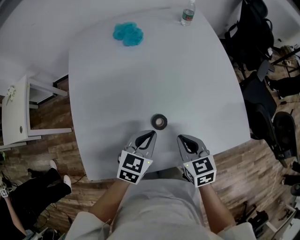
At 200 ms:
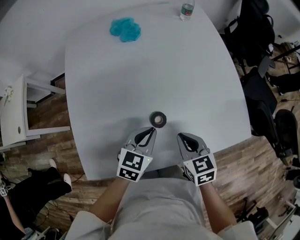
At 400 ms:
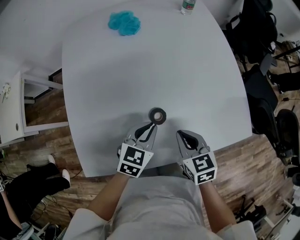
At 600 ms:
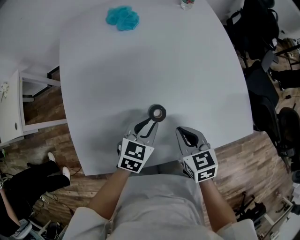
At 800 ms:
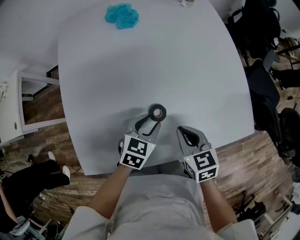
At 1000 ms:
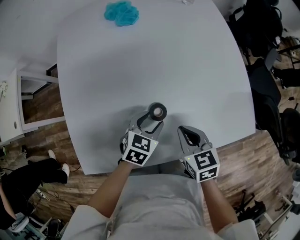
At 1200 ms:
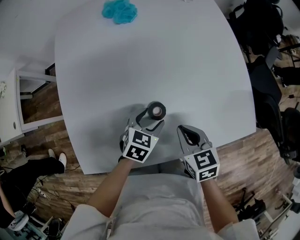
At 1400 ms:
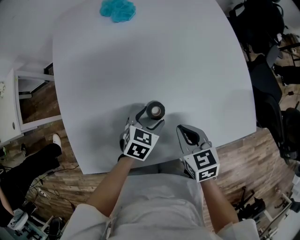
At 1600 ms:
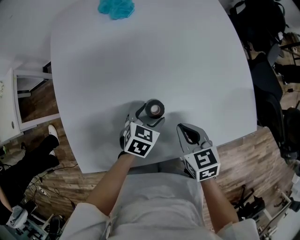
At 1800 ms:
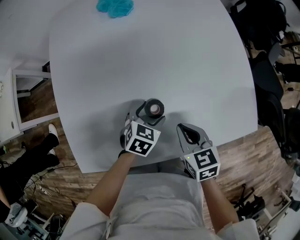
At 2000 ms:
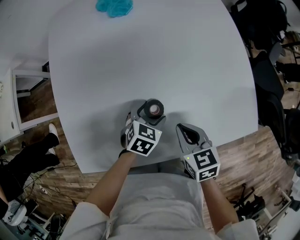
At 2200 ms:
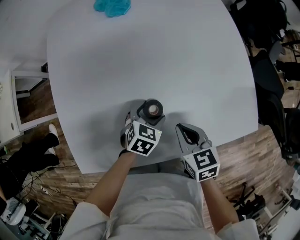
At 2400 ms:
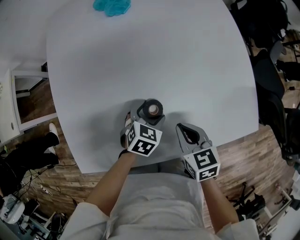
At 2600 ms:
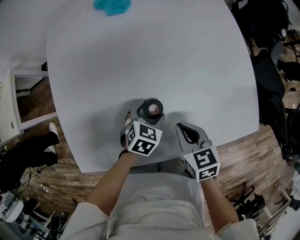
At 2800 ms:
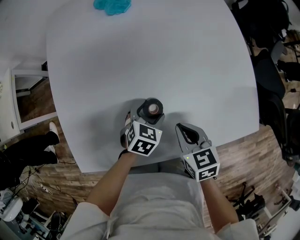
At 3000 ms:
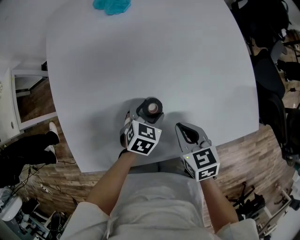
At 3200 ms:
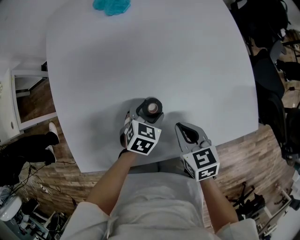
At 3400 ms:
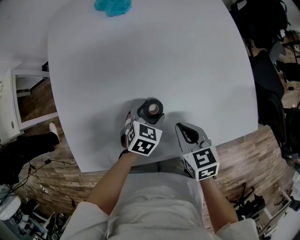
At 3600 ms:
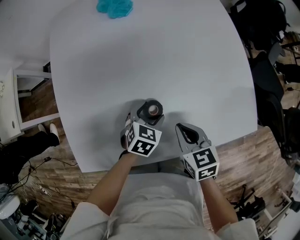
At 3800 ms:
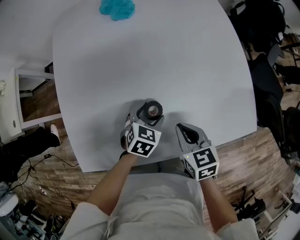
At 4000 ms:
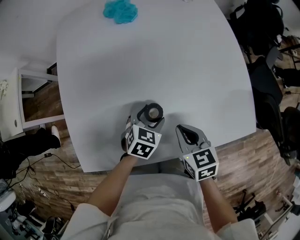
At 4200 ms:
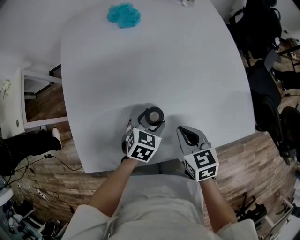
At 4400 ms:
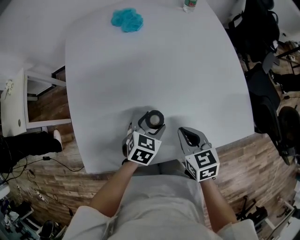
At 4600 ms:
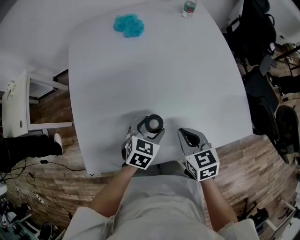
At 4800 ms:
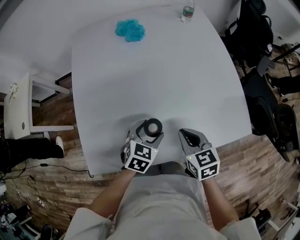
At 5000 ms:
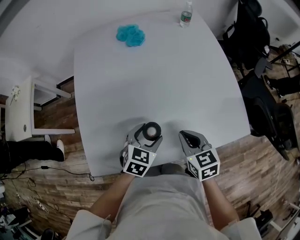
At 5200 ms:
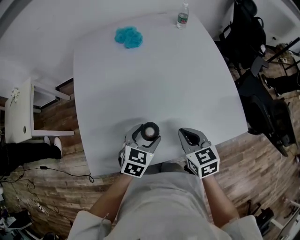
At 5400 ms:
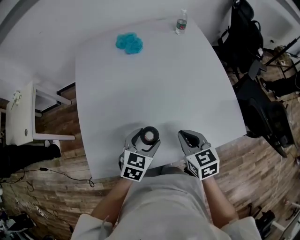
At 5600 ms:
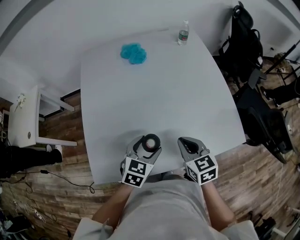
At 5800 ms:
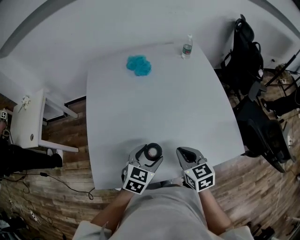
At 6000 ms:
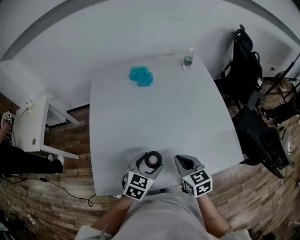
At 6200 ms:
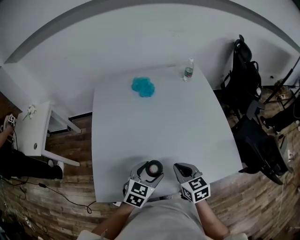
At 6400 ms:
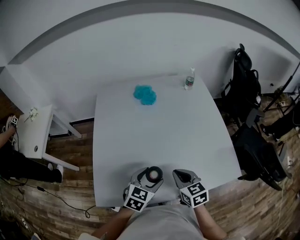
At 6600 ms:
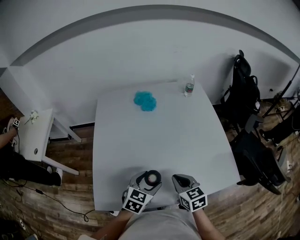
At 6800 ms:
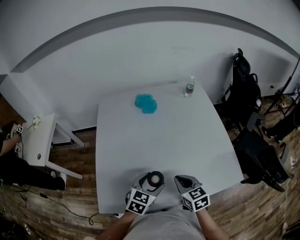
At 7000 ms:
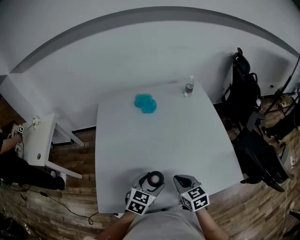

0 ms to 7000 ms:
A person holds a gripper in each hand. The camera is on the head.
0 ms to 1400 ms: The left gripper heads downward, covering roughly 10 cm, and opens its fingers.
1400 ms to 2800 ms: The grippers stay close to where they were, moving slightly.
2800 ms to 4200 ms: The left gripper is displaced upward by roughly 5 cm.
4200 ms to 5600 ms: The left gripper shifts roughly 15 cm upward and backward. Meanwhile the right gripper heads upward, covering approximately 10 cm.
5600 ms to 7000 ms: There are only small adjustments of the grippers.

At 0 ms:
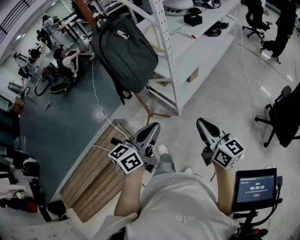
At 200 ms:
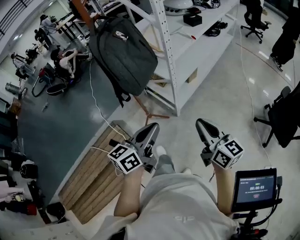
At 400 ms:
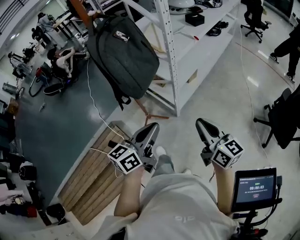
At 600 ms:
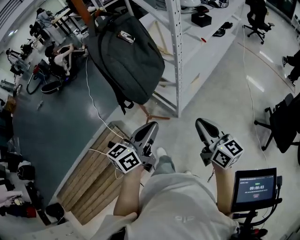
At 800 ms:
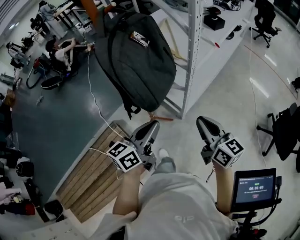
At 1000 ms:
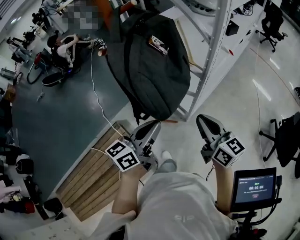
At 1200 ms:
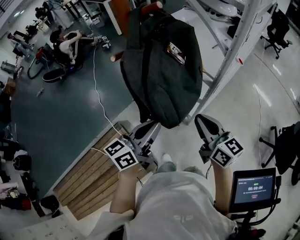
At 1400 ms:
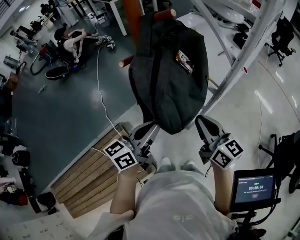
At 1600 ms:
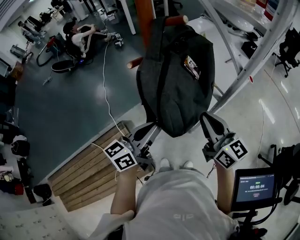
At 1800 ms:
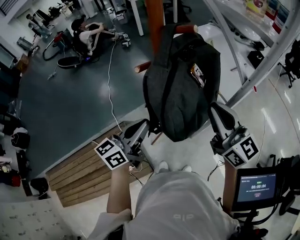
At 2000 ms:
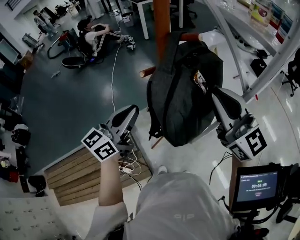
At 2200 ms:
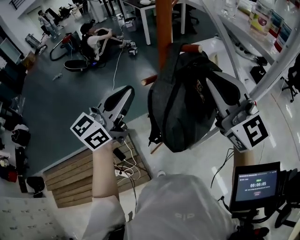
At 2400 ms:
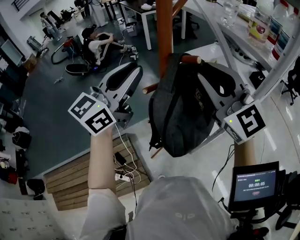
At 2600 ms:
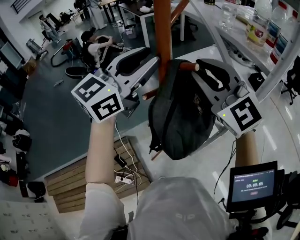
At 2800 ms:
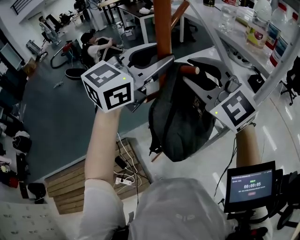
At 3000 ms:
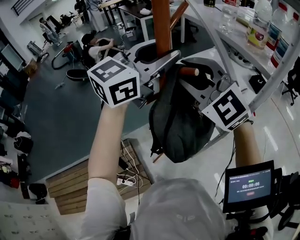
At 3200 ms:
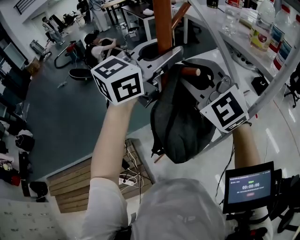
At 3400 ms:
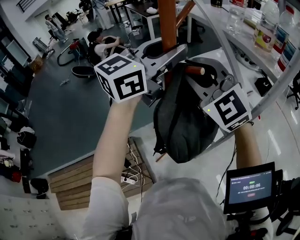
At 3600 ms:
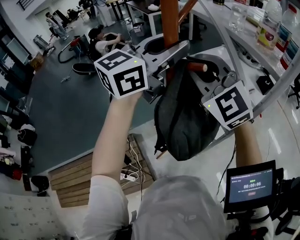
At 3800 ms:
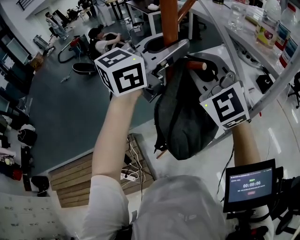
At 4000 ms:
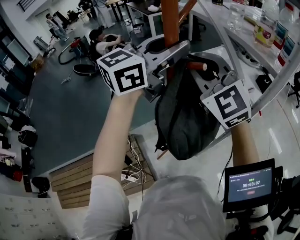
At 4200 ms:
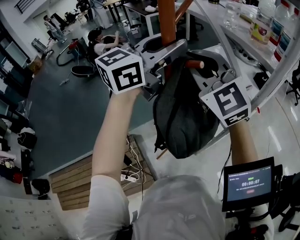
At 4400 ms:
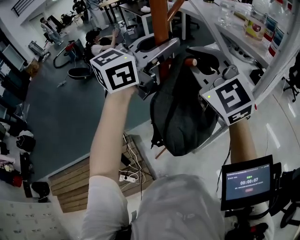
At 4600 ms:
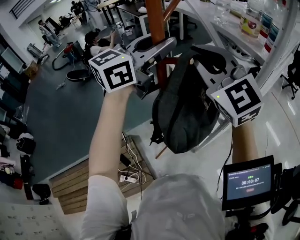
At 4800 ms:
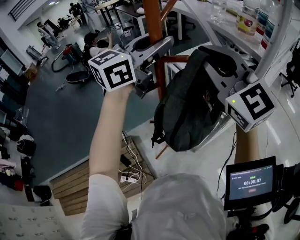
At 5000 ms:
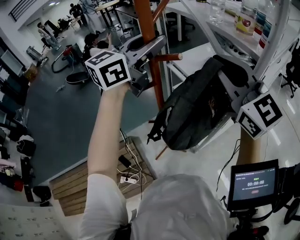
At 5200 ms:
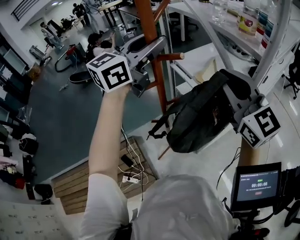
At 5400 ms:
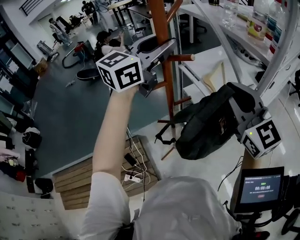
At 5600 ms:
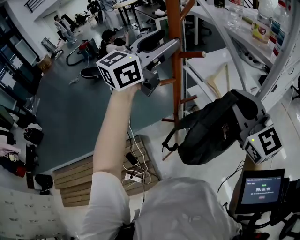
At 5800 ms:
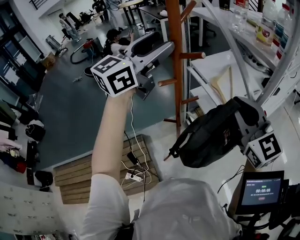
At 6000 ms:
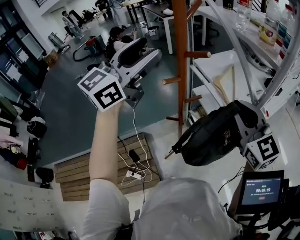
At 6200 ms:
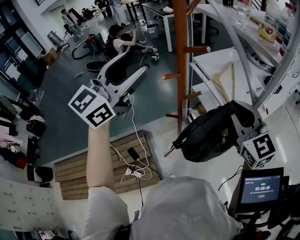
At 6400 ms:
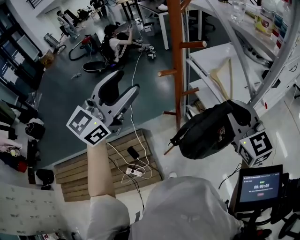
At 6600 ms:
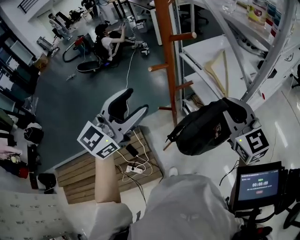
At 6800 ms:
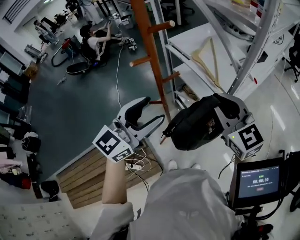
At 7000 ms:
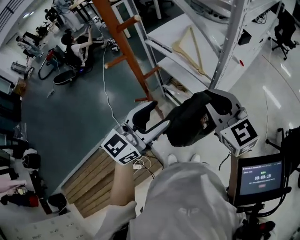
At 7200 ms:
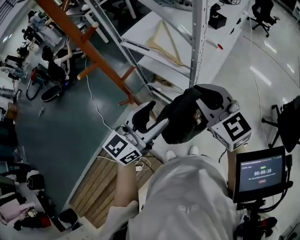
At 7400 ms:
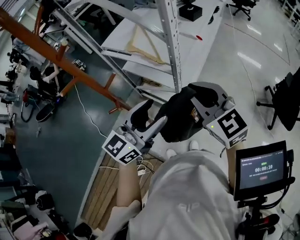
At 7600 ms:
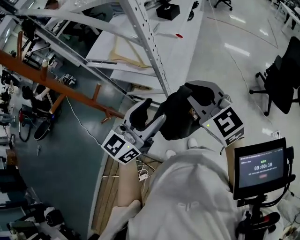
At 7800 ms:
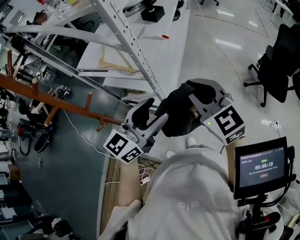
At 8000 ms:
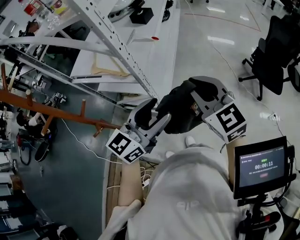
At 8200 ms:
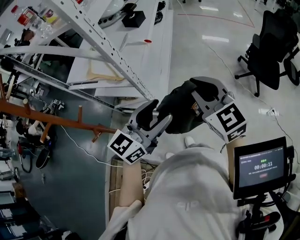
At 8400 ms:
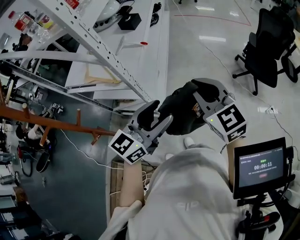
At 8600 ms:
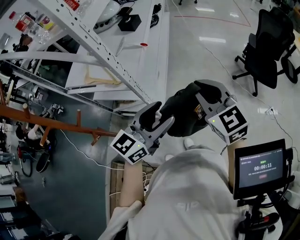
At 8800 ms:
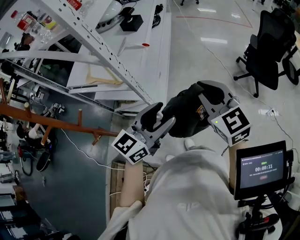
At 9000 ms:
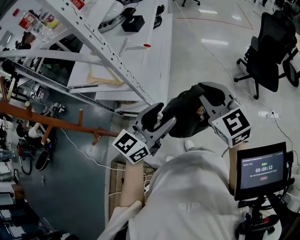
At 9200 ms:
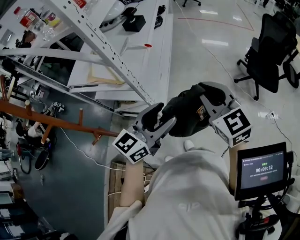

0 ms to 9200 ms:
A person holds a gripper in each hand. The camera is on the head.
0 ms to 1600 ms: The grippers both shift forward and to the left by approximately 40 cm.
1600 ms to 3000 ms: The left gripper travels upward and forward by some 35 cm, rotates around the line of its fingers by approximately 40 degrees, clockwise from behind, and opens its fingers. The right gripper travels upward, to the left and forward by about 30 cm, twists some 60 degrees counterclockwise, seen from behind, and opens.
3000 ms to 4600 ms: The right gripper changes place by approximately 5 cm.
4600 ms to 6200 ms: The right gripper travels downward, backward and to the right by some 15 cm; the left gripper goes approximately 20 cm to the left and backward, turns by roughly 20 degrees, and opens up.
6200 ms to 7600 ms: The left gripper ends up roughly 40 cm from where it was, and changes its angle by some 50 degrees; the right gripper changes place by some 20 cm, and rotates roughly 30 degrees.
7600 ms to 9200 ms: Both grippers travel together to the right, about 15 cm. The right gripper rotates approximately 20 degrees.

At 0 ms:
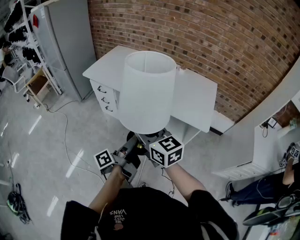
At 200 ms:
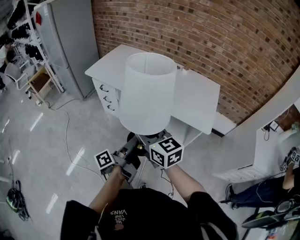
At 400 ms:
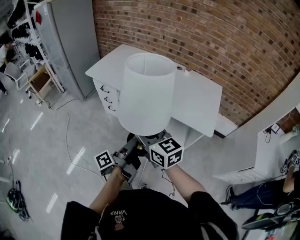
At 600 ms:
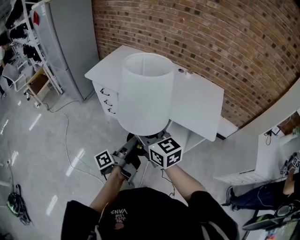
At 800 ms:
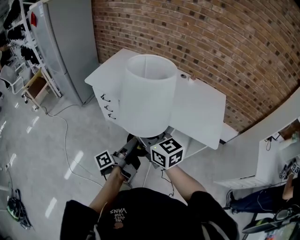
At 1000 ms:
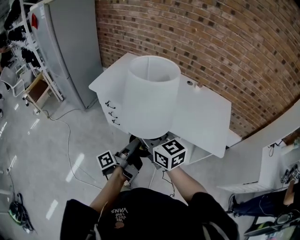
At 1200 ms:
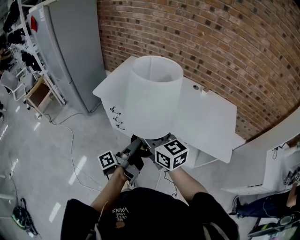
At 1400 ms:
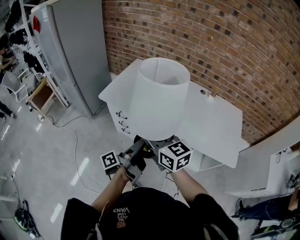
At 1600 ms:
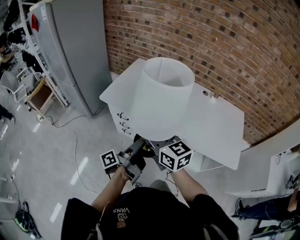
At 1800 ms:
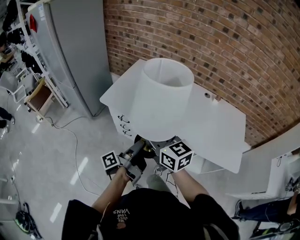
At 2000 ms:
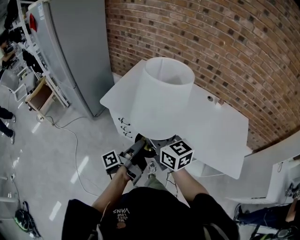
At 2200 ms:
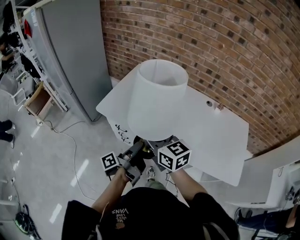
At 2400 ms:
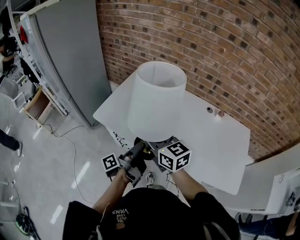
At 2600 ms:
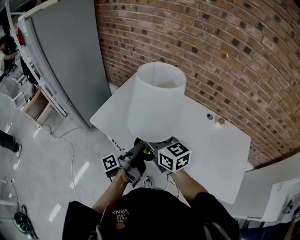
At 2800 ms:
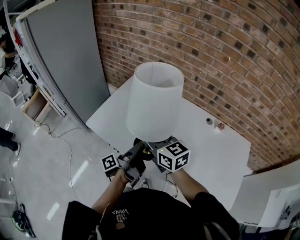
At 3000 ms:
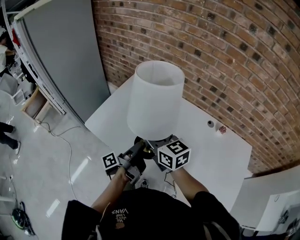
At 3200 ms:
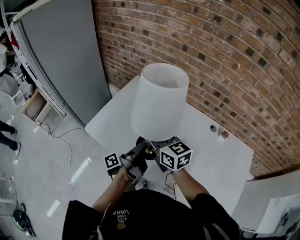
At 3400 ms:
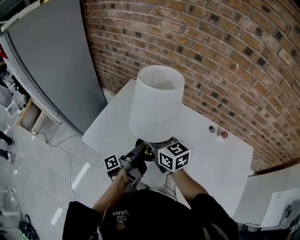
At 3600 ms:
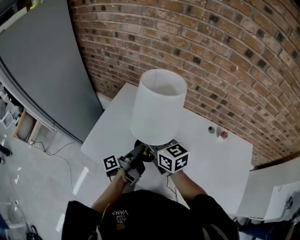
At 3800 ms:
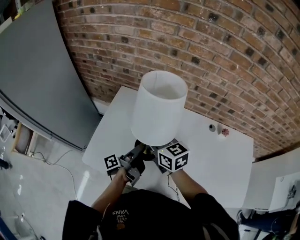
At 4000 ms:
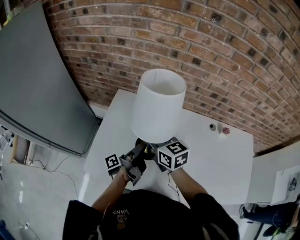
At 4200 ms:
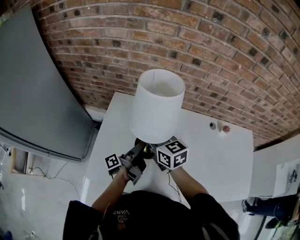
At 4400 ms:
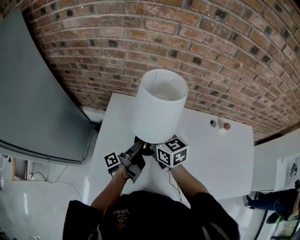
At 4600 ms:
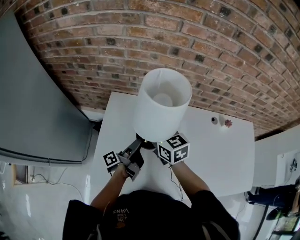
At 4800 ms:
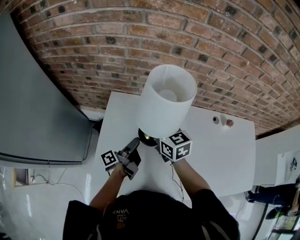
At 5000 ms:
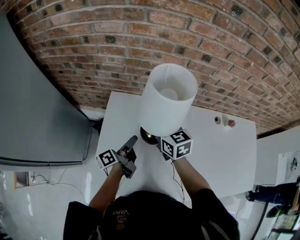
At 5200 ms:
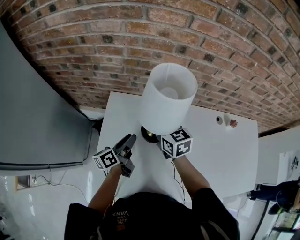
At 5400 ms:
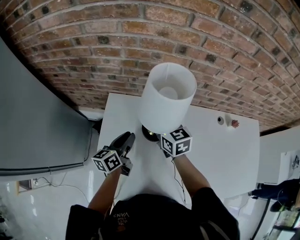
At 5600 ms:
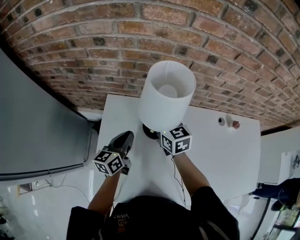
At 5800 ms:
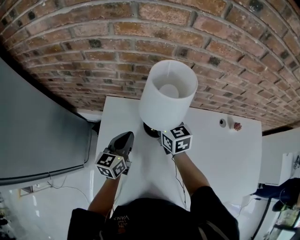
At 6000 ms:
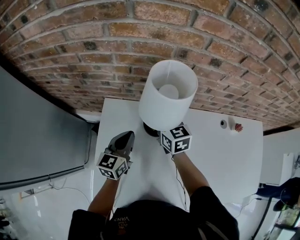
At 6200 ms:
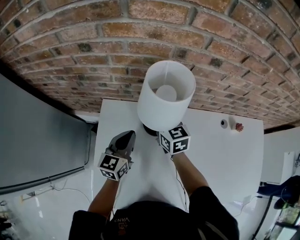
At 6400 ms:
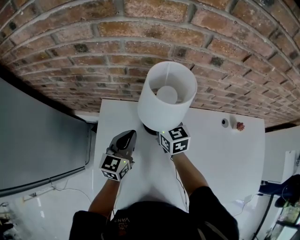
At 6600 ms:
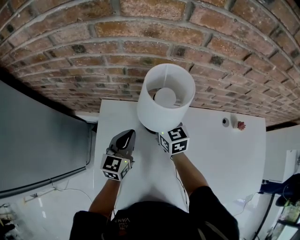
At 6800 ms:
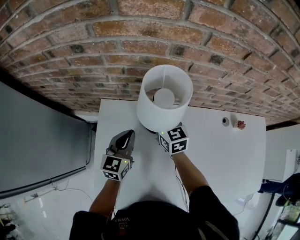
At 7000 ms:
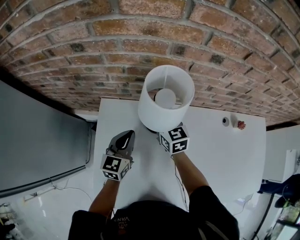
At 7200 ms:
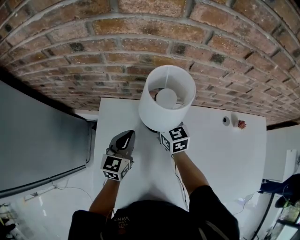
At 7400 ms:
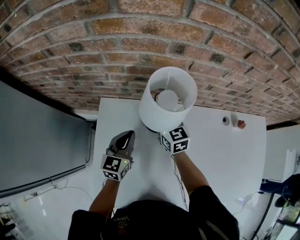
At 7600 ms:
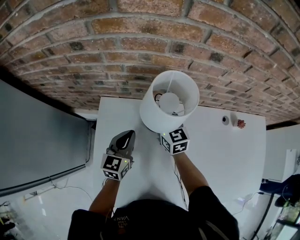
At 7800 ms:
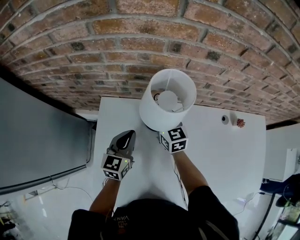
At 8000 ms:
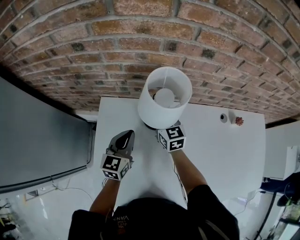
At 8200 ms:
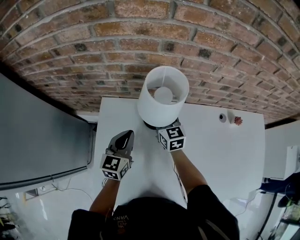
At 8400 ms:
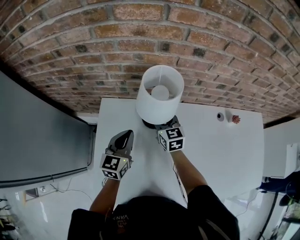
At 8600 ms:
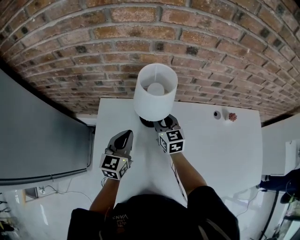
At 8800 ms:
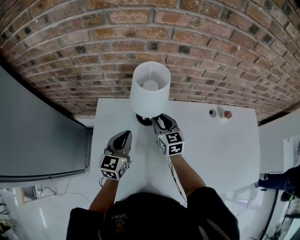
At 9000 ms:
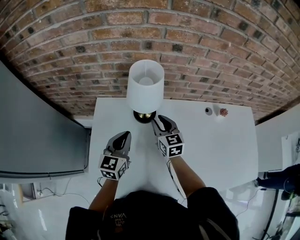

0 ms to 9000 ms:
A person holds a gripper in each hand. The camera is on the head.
0 ms to 1600 ms: Both grippers move forward and to the left, about 35 cm.
1600 ms to 3000 ms: The right gripper is displaced forward by about 25 cm. Meanwhile the left gripper moves forward and to the right, roughly 30 cm.
3000 ms to 4400 ms: Both grippers travel together forward, some 25 cm. The right gripper rotates roughly 30 degrees. The left gripper turns by about 20 degrees.
4400 ms to 6000 ms: The right gripper moves forward and downward, approximately 20 cm, while the left gripper heads forward, covering approximately 15 cm, twists roughly 80 degrees clockwise, seen from behind, and closes.
6000 ms to 7600 ms: The grippers move only a little.
7600 ms to 9000 ms: The right gripper travels backward and to the right by about 10 cm. Meanwhile the left gripper travels backward and upward by about 10 cm.
